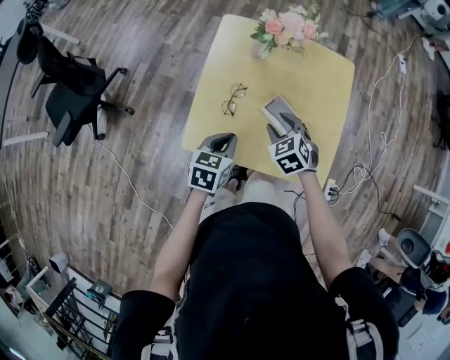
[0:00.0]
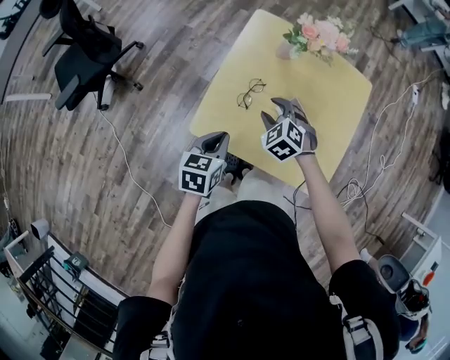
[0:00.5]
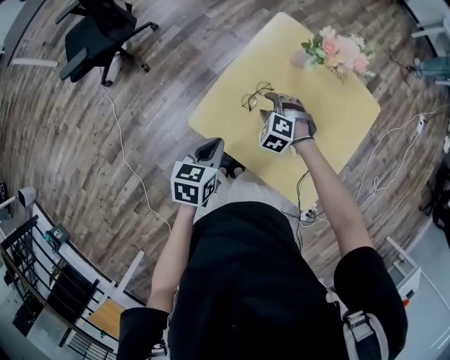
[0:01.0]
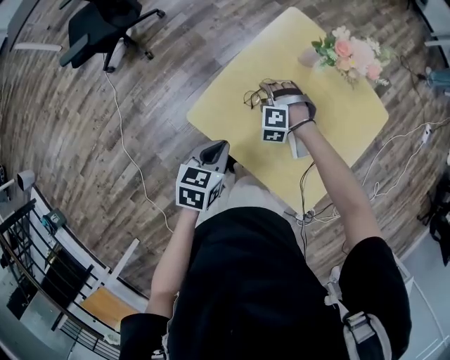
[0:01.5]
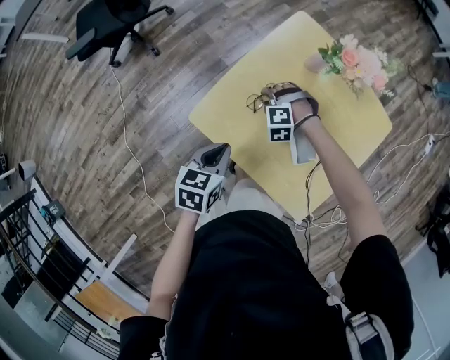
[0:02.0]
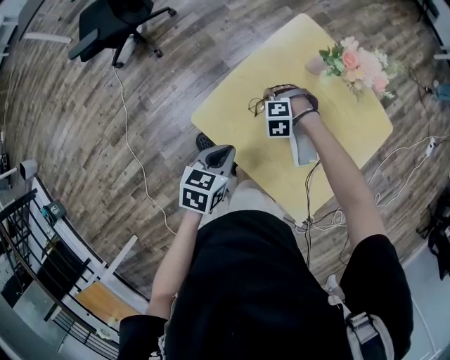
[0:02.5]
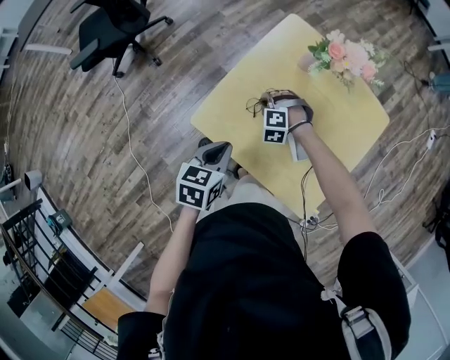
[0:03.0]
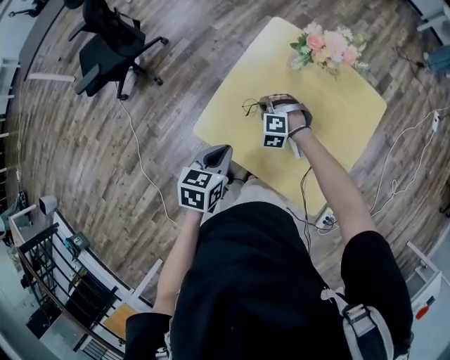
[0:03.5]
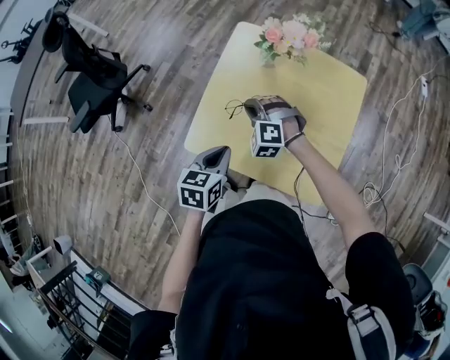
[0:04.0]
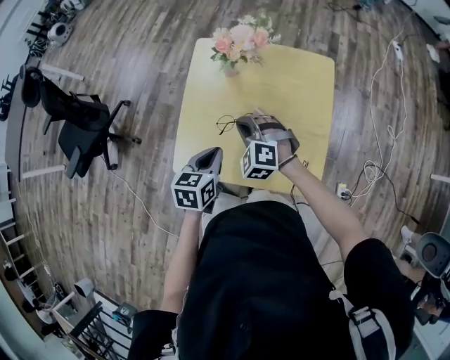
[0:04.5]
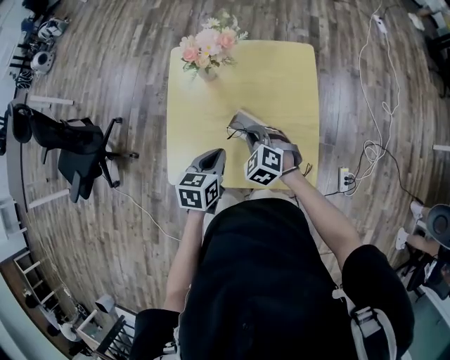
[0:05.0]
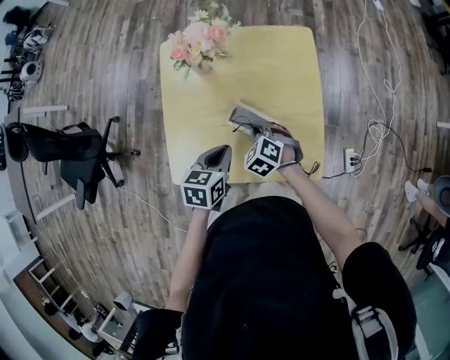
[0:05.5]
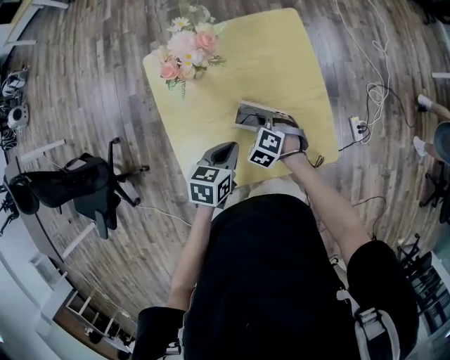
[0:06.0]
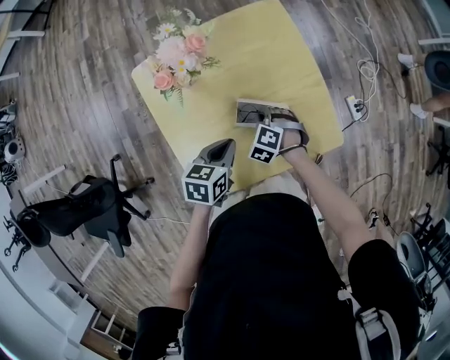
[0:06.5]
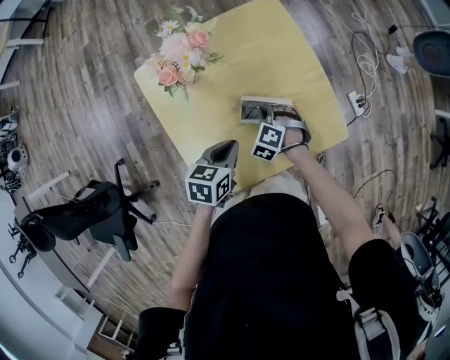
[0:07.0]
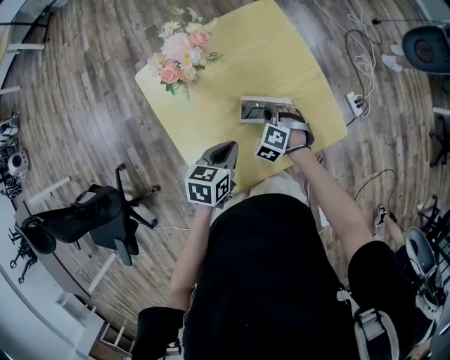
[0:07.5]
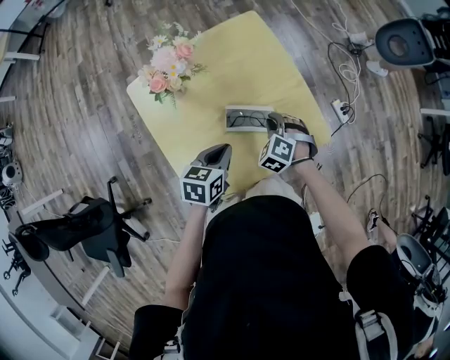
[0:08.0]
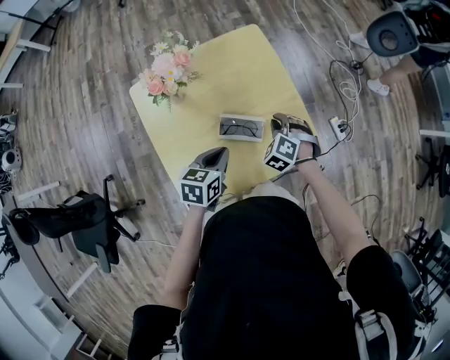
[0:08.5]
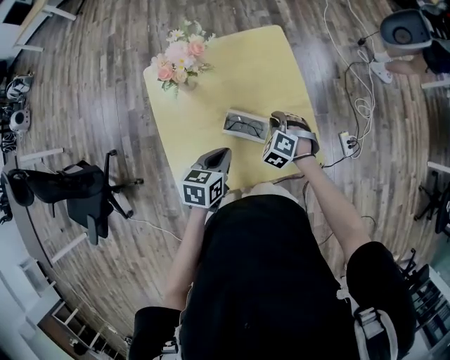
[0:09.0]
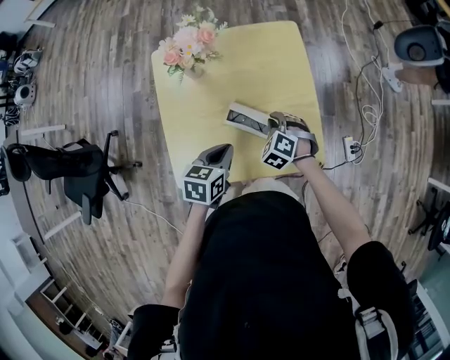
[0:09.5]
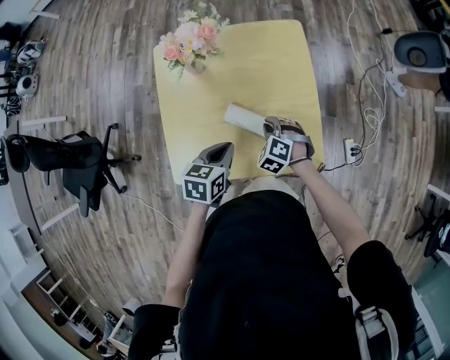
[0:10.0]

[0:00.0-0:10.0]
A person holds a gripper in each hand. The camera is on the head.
0:00.0 to 0:02.0: The right gripper ends up roughly 20 cm from where it was, and rolls counterclockwise, seen from behind, by approximately 80 degrees; the left gripper changes its angle by roughly 30 degrees.
0:02.0 to 0:04.0: The left gripper shifts by approximately 5 cm. Meanwhile the right gripper moves upward, about 15 cm, changes its angle by some 40 degrees, and closes its fingers.
0:04.0 to 0:06.0: The left gripper moves roughly 15 cm, and rotates about 40 degrees. The right gripper moves some 20 cm, and twists some 50 degrees clockwise, seen from behind.
0:06.0 to 0:08.0: The right gripper shifts roughly 5 cm to the right.
0:08.0 to 0:10.0: The right gripper swivels roughly 30 degrees. Meanwhile the left gripper ends up roughly 5 cm from where it was, and swivels about 20 degrees.

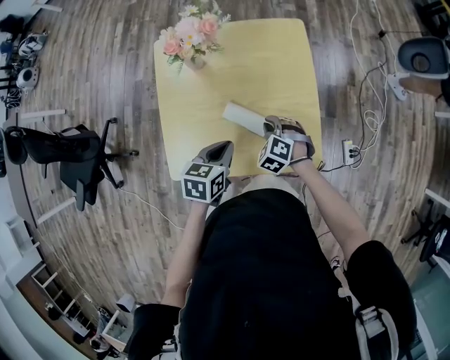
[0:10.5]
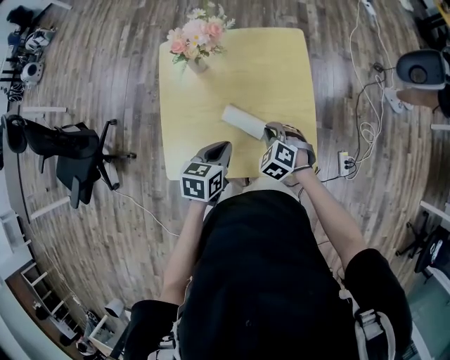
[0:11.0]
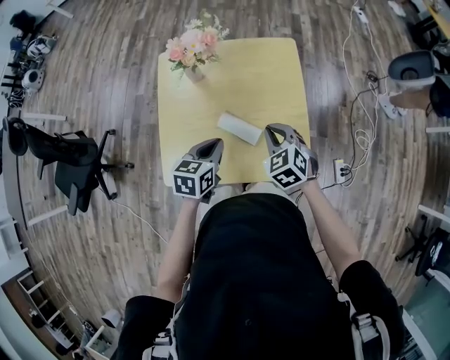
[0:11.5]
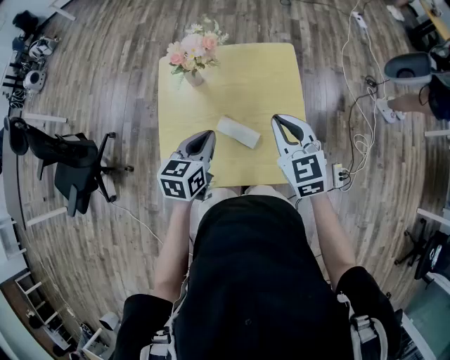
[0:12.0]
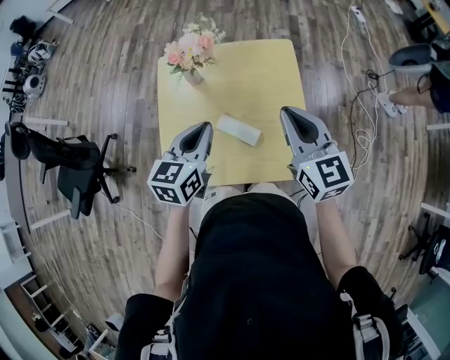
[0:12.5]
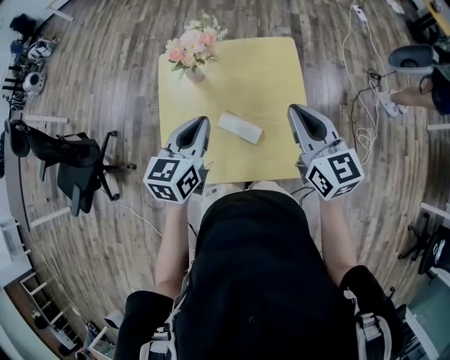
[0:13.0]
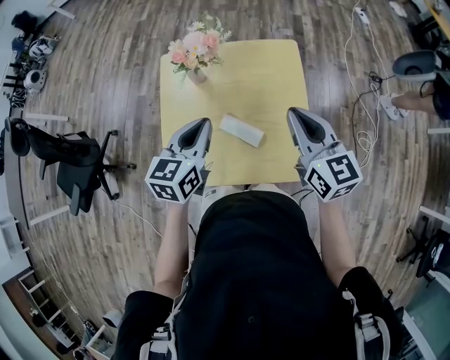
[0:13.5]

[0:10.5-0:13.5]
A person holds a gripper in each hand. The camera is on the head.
0:10.5 to 0:12.0: The right gripper shifts some 25 cm upward, and tilts its fingers about 40 degrees upward. Meanwhile the left gripper moves upward, approximately 10 cm.
0:12.0 to 0:13.5: Both grippers travel together upward, about 5 cm. The right gripper turns by approximately 20 degrees.

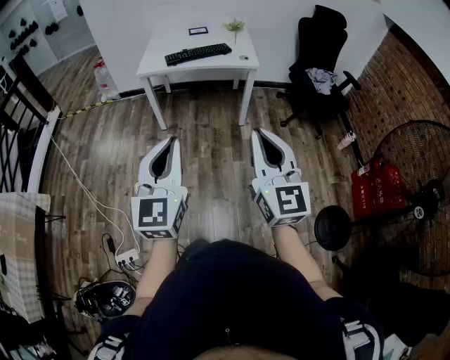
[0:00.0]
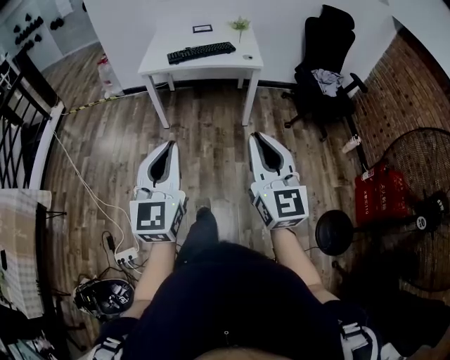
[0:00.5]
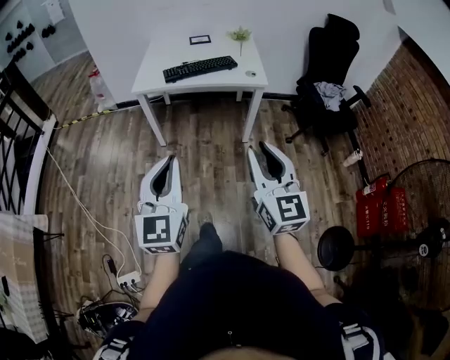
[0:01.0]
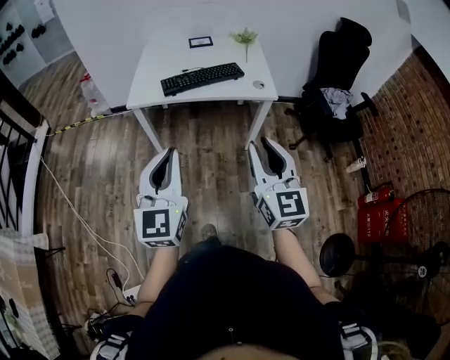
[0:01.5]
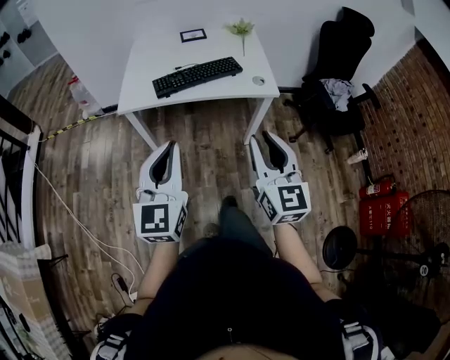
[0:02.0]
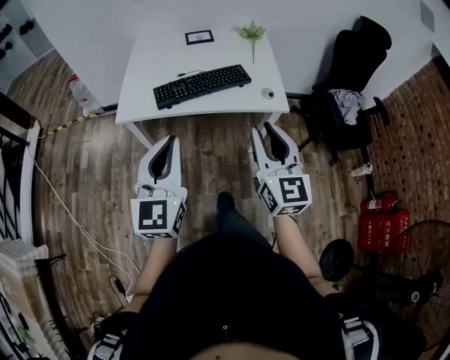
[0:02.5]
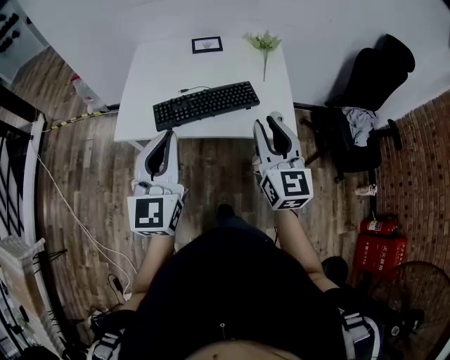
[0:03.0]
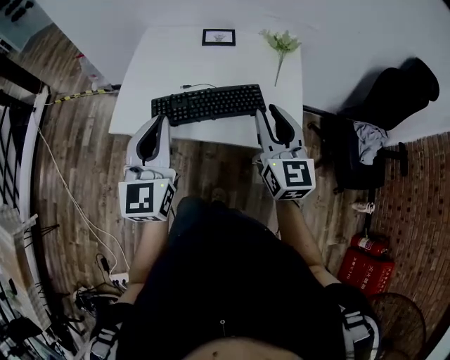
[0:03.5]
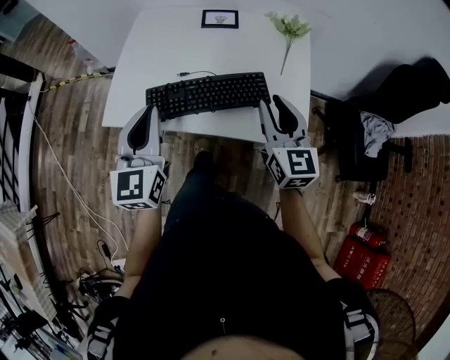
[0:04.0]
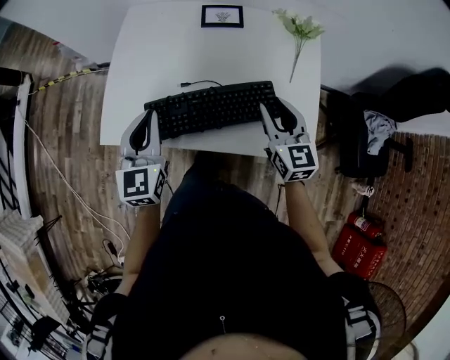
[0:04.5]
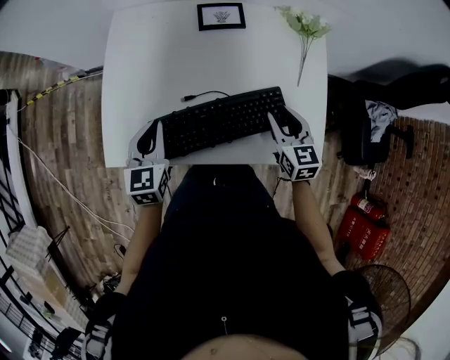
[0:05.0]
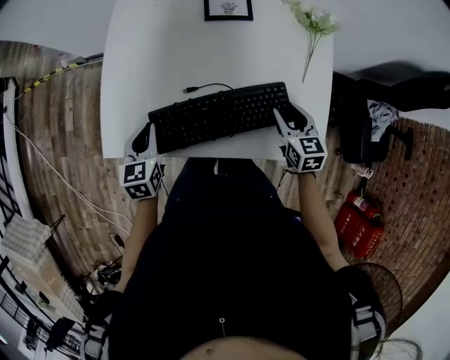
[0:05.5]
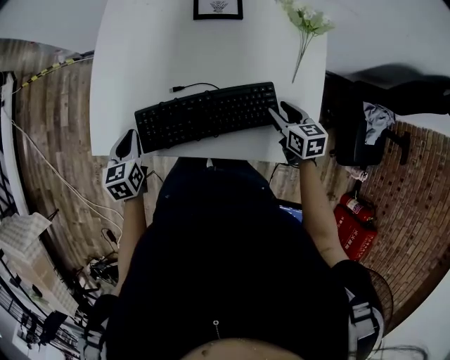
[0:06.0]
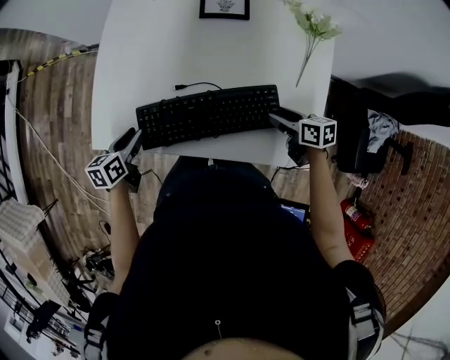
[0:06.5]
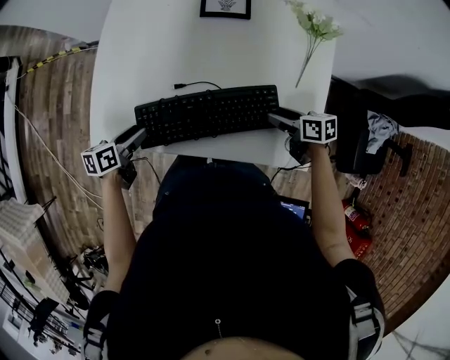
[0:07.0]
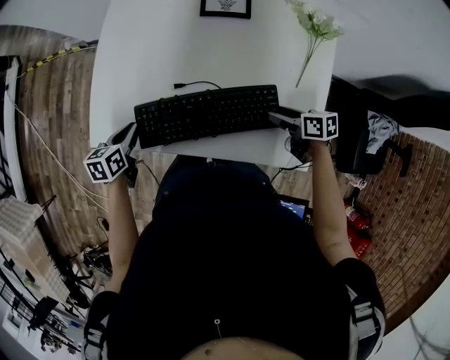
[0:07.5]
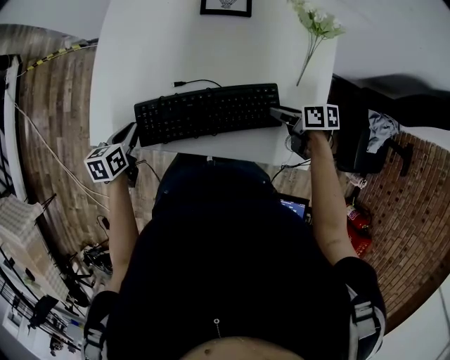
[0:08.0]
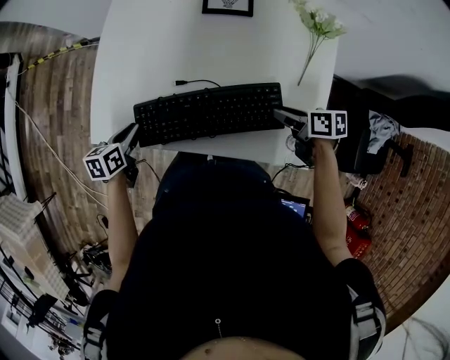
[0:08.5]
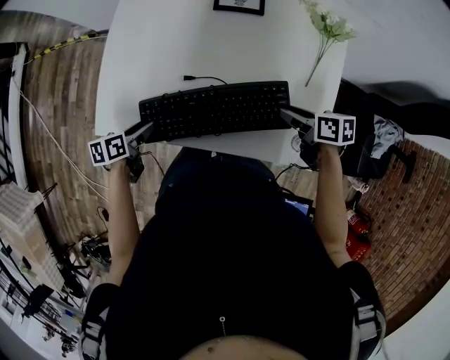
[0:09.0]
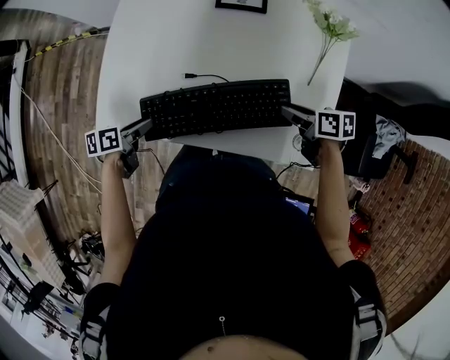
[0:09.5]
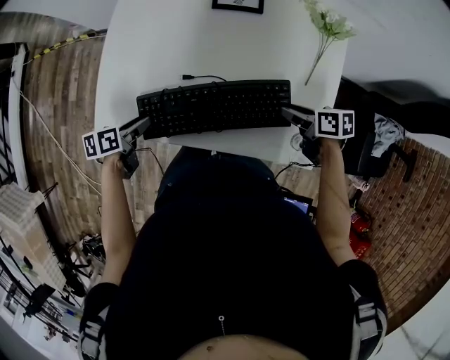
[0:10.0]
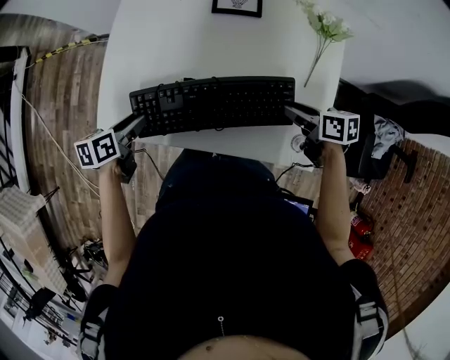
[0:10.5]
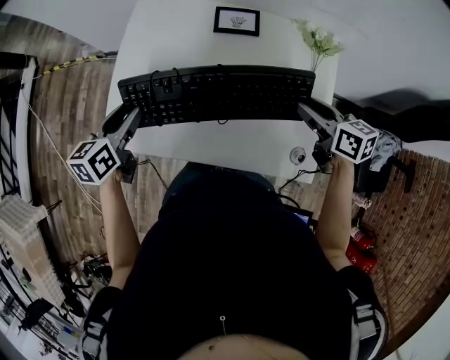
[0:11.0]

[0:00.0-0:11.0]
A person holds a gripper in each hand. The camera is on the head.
0:00.0 to 0:02.0: The two grippers travel together, forward, some 40 cm.
0:02.0 to 0:03.5: Both grippers move forward, about 35 cm.
0:03.5 to 0:05.5: The right gripper travels downward and forward by about 30 cm, and points its fingers roughly 40 degrees further downward. The left gripper travels downward, forward and to the left by approximately 35 cm, and tilts its fingers about 40 degrees downward.
0:05.5 to 0:07.5: The left gripper changes its angle by about 30 degrees, and opens and closes again. Meanwhile the right gripper shifts approximately 5 cm downward, and swivels roughly 50 degrees.
0:07.5 to 0:09.0: The left gripper opens up; the right gripper shifts roughly 5 cm upward.
0:09.0 to 0:11.0: The grippers both shift upward and forward by roughly 15 cm. The right gripper swivels about 30 degrees. The left gripper turns by approximately 30 degrees.

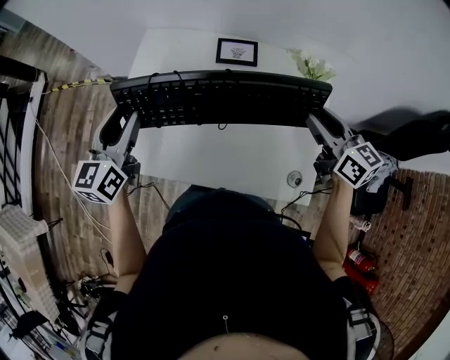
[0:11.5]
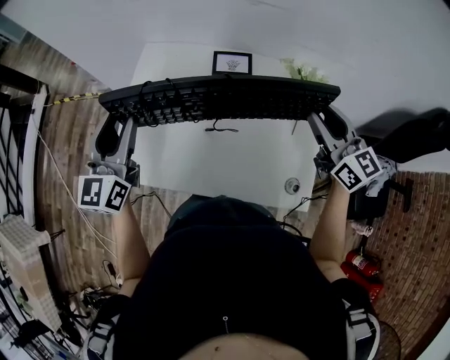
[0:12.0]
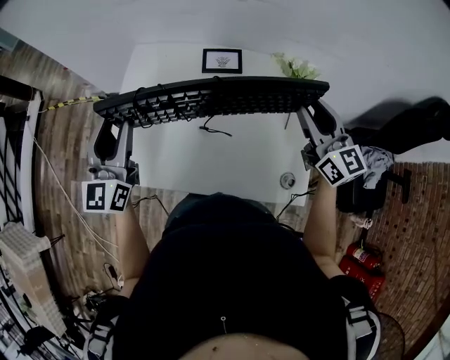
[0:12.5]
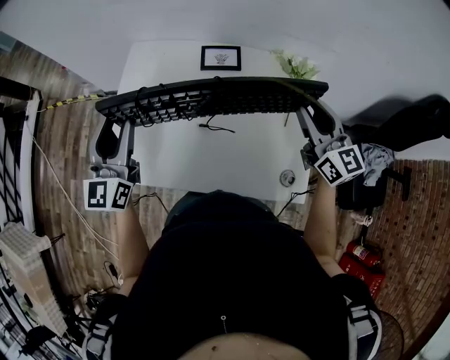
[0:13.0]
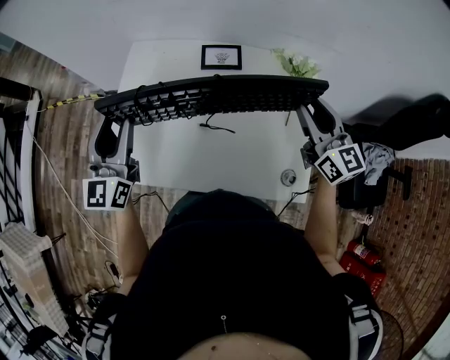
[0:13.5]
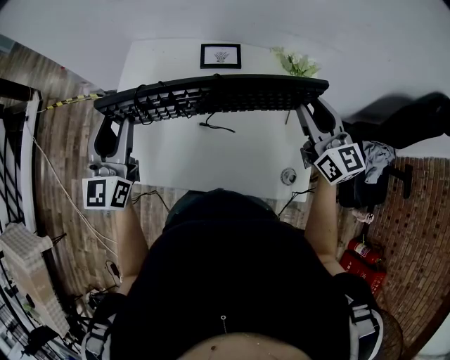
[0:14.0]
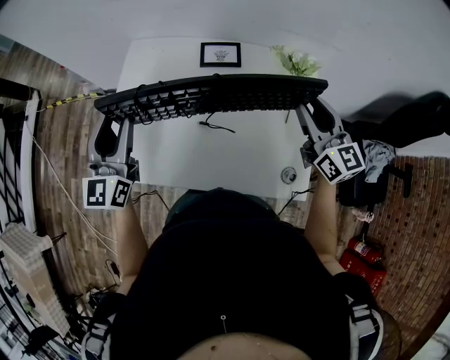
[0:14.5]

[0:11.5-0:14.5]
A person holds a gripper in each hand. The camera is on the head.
0:11.5 to 0:13.0: The right gripper changes its angle by approximately 20 degrees.
0:13.0 to 0:14.5: Both grippers stay put.
